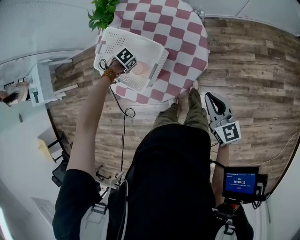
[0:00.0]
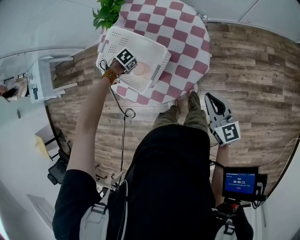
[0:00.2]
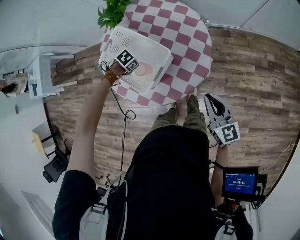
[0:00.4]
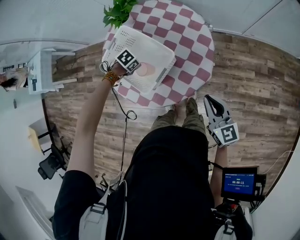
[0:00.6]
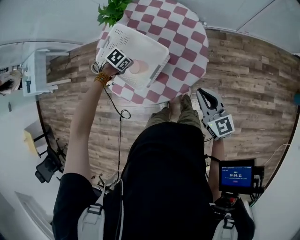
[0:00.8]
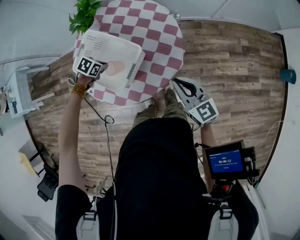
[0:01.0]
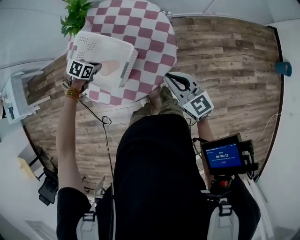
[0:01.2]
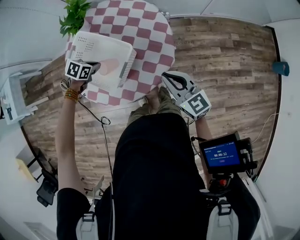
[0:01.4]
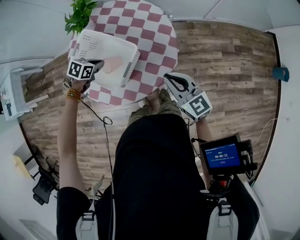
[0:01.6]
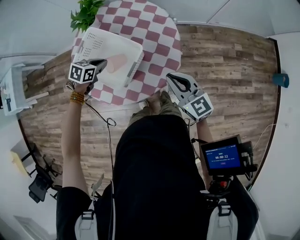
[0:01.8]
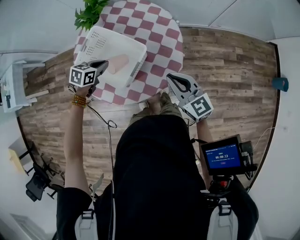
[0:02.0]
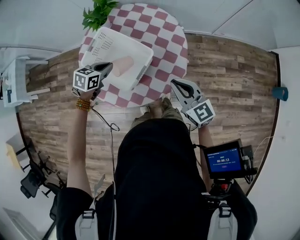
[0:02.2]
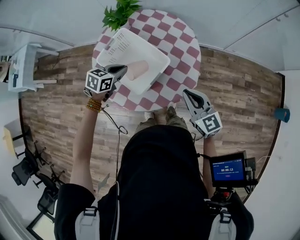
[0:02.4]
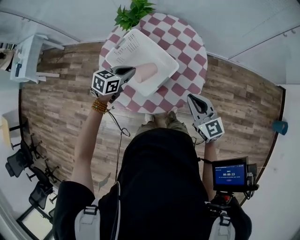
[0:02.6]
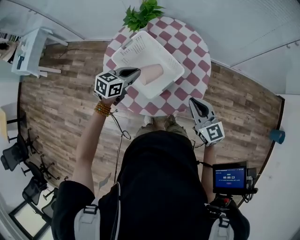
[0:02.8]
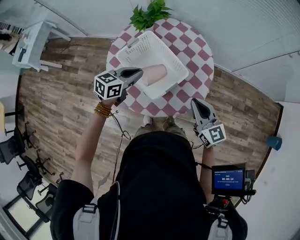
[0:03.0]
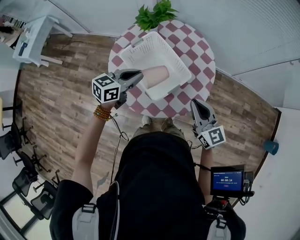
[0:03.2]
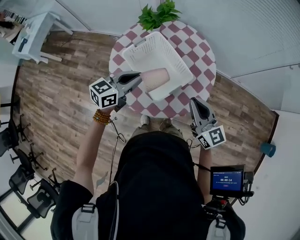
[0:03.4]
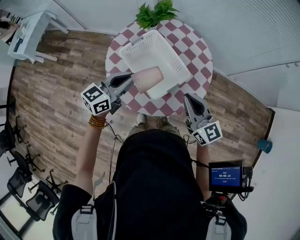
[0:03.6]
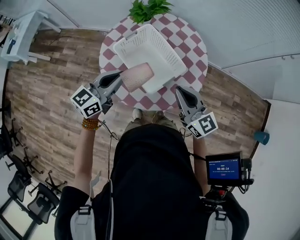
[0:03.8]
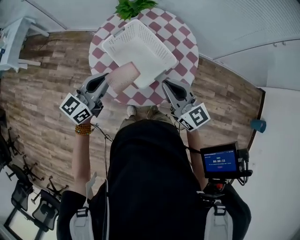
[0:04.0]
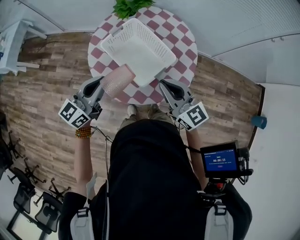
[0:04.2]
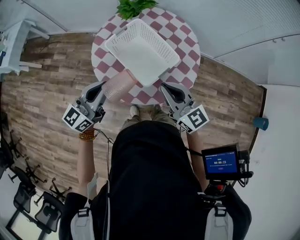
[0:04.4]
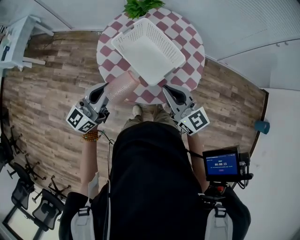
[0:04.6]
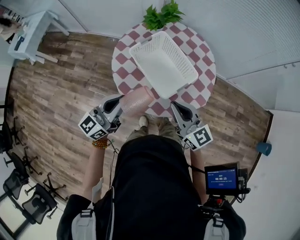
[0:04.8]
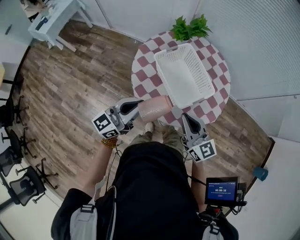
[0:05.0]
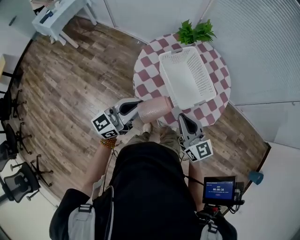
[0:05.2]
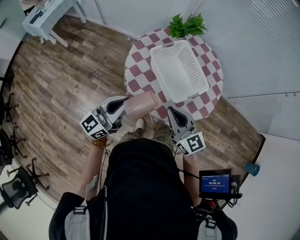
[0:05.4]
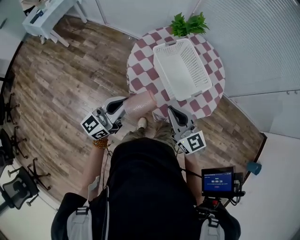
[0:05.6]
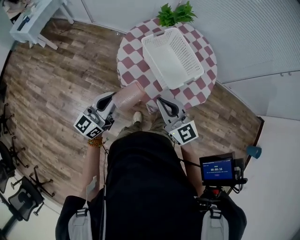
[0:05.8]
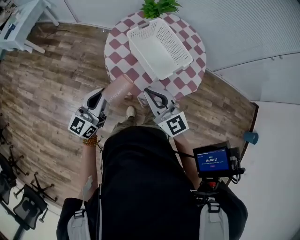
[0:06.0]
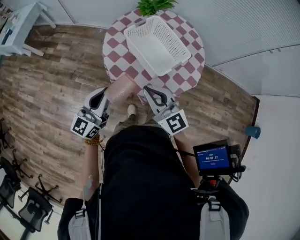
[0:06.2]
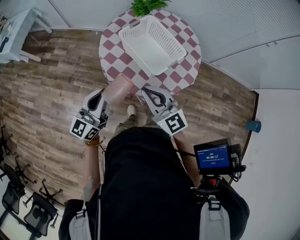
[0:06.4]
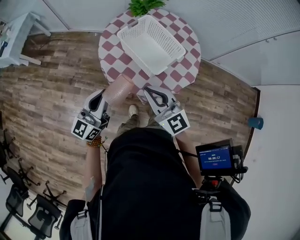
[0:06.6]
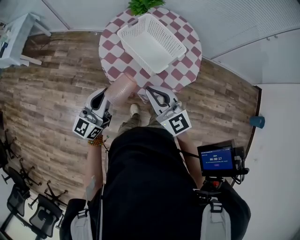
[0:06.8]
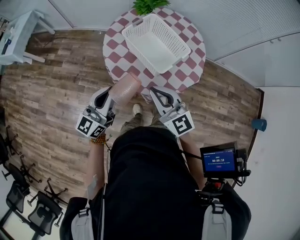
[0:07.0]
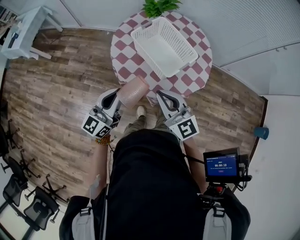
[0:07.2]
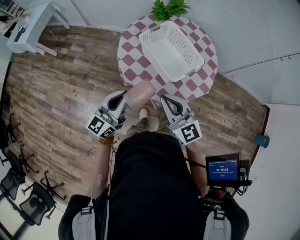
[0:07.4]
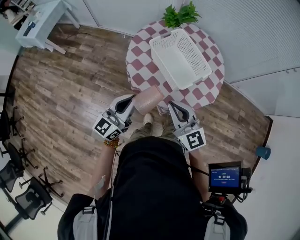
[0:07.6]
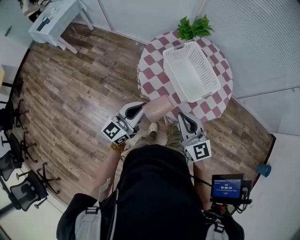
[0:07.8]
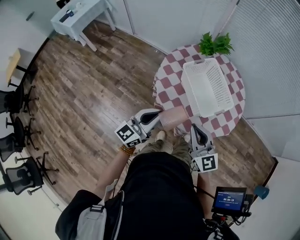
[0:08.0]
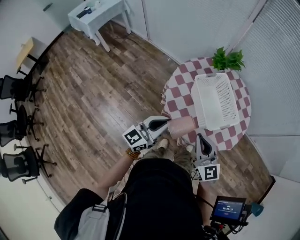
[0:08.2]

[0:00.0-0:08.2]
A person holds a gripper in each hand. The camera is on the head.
0:00.0 to 0:01.6: The right gripper shifts by roughly 10 cm, while the left gripper travels upward by about 10 cm, and rotates roughly 30 degrees.
0:01.6 to 0:03.2: The right gripper heads to the left and upward, covering some 10 cm, while the left gripper heads upward, covering about 15 cm, and angles its fingers upward, by approximately 40 degrees.
0:03.2 to 0:05.0: The right gripper heads to the left and backward, covering roughly 20 cm. Meanwhile the left gripper is displaced backward and to the left by about 20 cm, and turns by approximately 30 degrees.
0:05.0 to 0:06.6: The left gripper shifts approximately 10 cm backward and to the left, while the right gripper heads to the left and backward, covering some 10 cm.
0:06.6 to 0:08.2: There are only small adjustments of the grippers.

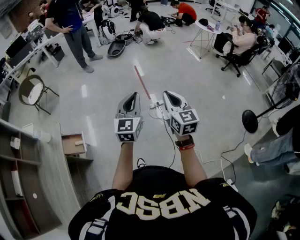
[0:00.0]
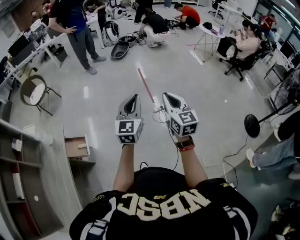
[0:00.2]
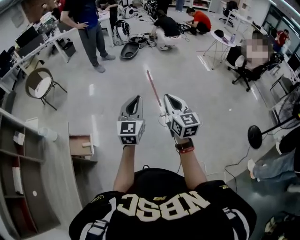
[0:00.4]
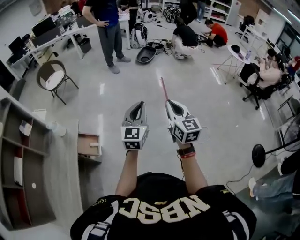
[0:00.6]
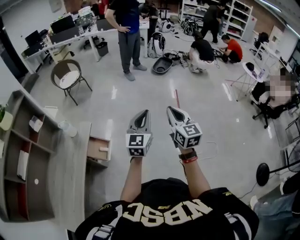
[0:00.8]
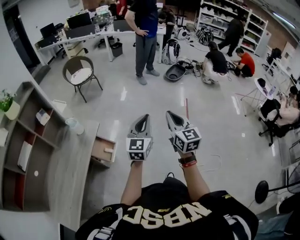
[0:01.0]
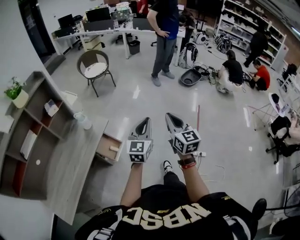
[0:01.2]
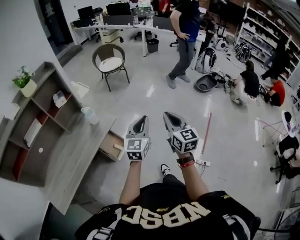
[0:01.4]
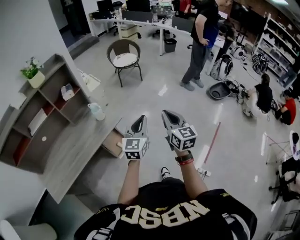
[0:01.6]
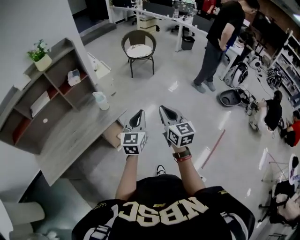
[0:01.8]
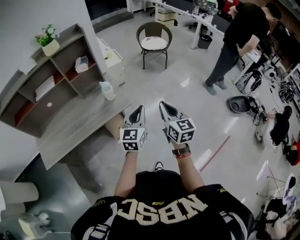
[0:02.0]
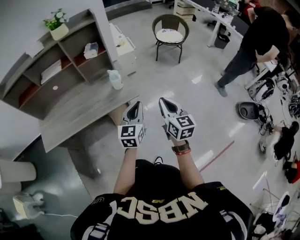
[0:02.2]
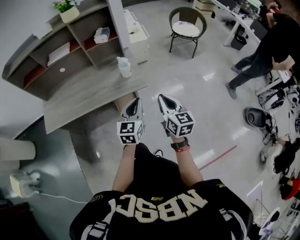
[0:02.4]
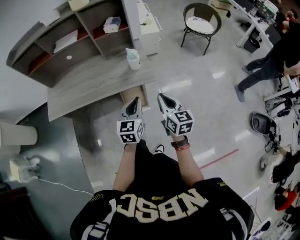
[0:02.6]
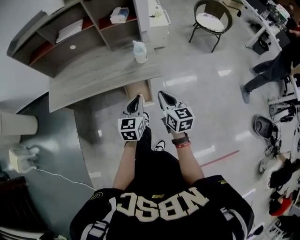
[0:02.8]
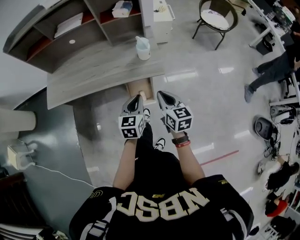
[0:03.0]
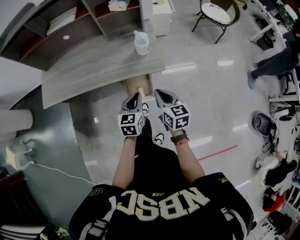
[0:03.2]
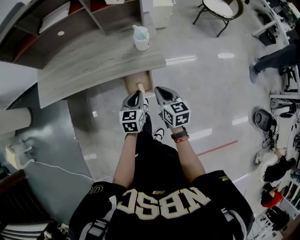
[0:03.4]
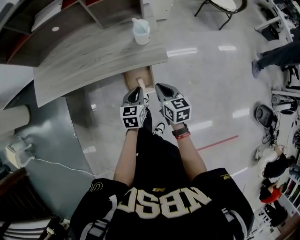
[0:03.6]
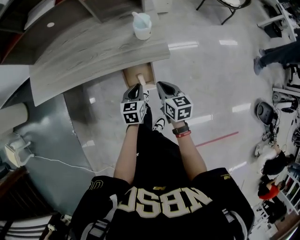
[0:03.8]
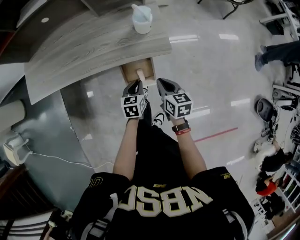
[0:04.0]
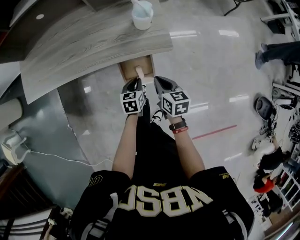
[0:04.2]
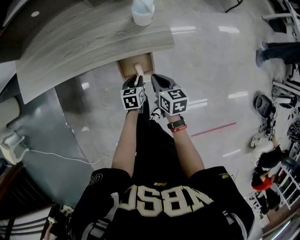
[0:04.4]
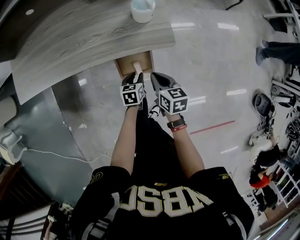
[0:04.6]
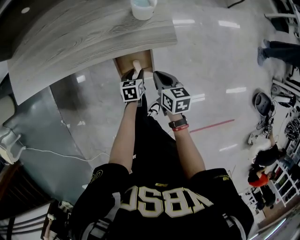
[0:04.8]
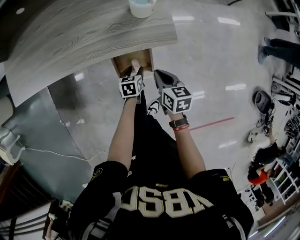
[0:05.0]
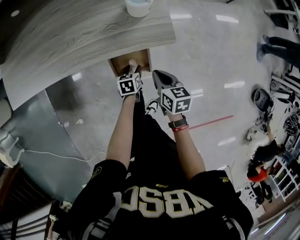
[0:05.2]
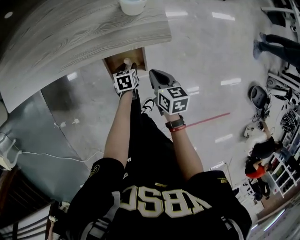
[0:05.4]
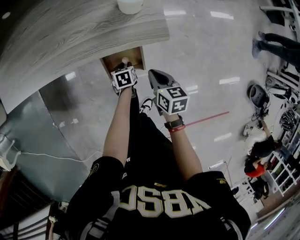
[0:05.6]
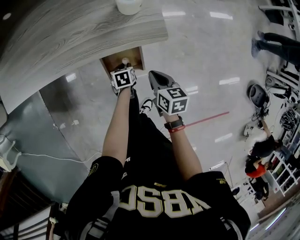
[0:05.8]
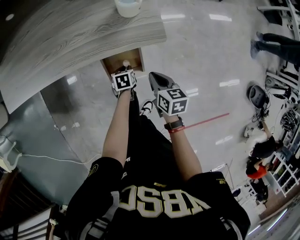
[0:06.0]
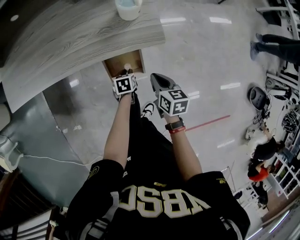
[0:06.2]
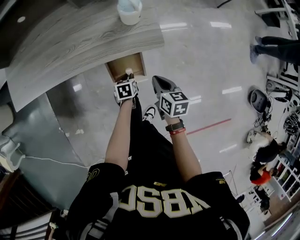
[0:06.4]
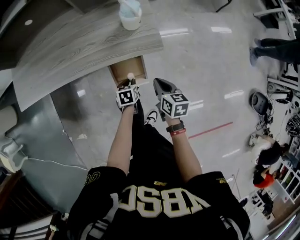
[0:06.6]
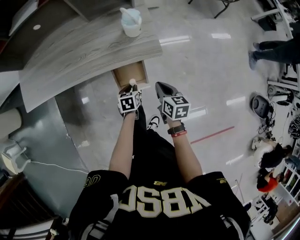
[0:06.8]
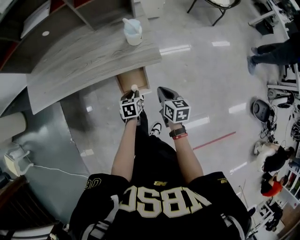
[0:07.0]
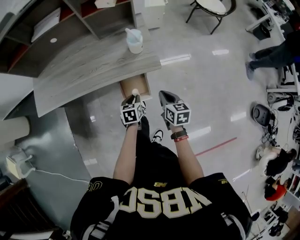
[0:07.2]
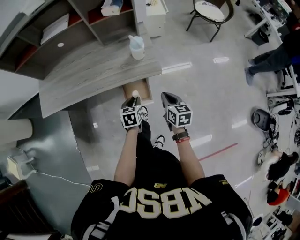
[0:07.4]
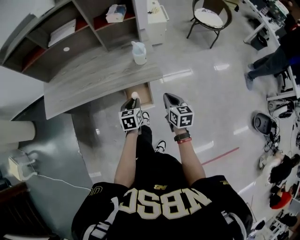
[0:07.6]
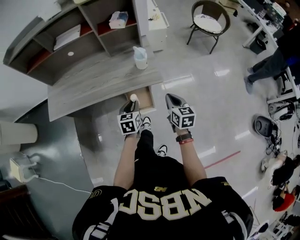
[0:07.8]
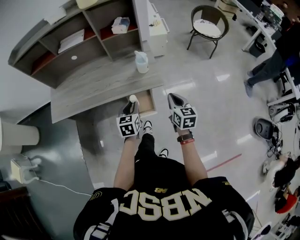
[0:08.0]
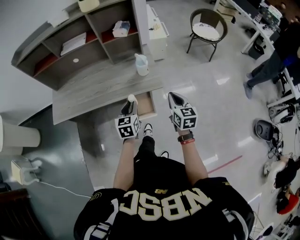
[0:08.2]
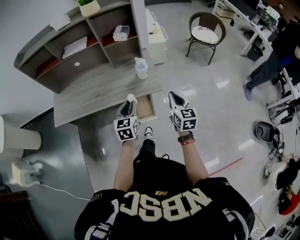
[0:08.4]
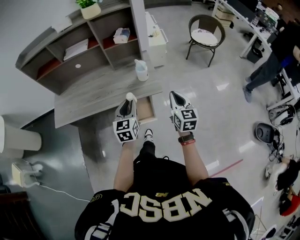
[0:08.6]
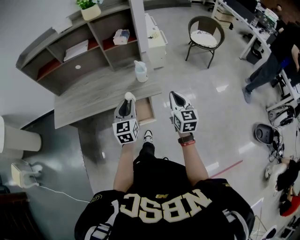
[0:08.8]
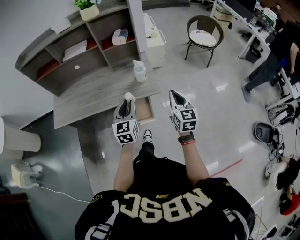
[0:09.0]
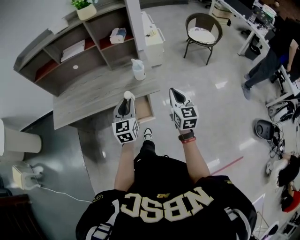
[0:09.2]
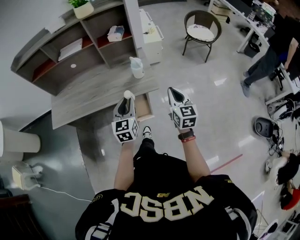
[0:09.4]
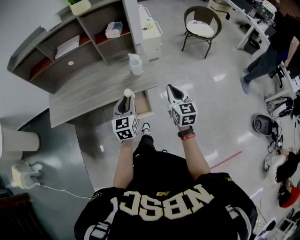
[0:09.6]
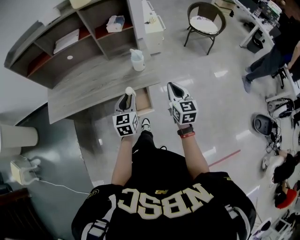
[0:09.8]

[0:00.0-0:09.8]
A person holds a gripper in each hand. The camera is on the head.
0:00.0 to 0:01.4: The pair of grippers is taken approximately 50 cm. The left gripper rotates approximately 40 degrees. The right gripper changes its angle by roughly 50 degrees.
0:01.4 to 0:02.8: The left gripper shifts by roughly 25 cm, and swivels approximately 60 degrees, while the right gripper ends up roughly 30 cm from where it was, and rotates some 60 degrees.
0:02.8 to 0:04.2: Both grippers move downward, roughly 25 cm. The left gripper swivels some 30 degrees, while the right gripper swivels approximately 20 degrees.
0:04.2 to 0:05.6: The left gripper is displaced downward by approximately 15 cm, and opens. The right gripper heads downward, covering about 5 cm.
0:05.6 to 0:07.0: The right gripper is displaced upward by roughly 10 cm. Meanwhile the left gripper travels upward by about 20 cm.
0:07.0 to 0:08.4: Both grippers move upward, approximately 25 cm. The left gripper tilts its fingers some 30 degrees upward; the right gripper rotates roughly 30 degrees.
0:08.4 to 0:09.8: There are only small adjustments of the grippers.

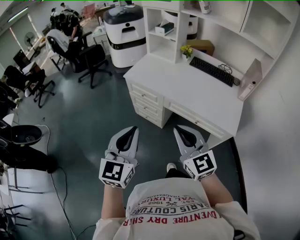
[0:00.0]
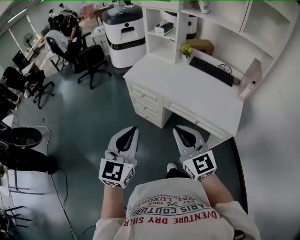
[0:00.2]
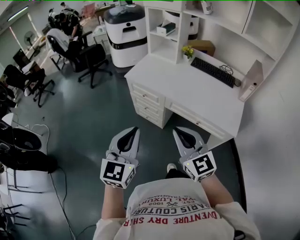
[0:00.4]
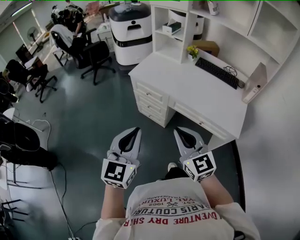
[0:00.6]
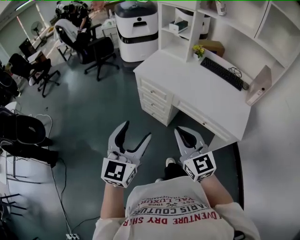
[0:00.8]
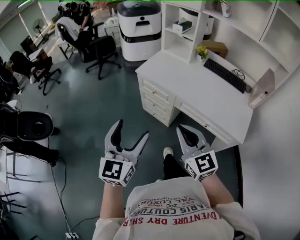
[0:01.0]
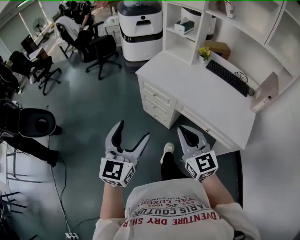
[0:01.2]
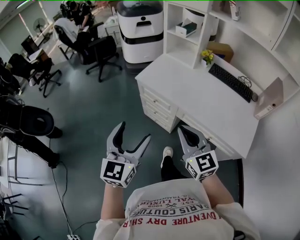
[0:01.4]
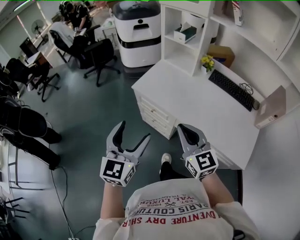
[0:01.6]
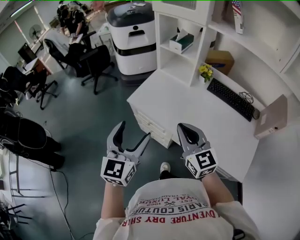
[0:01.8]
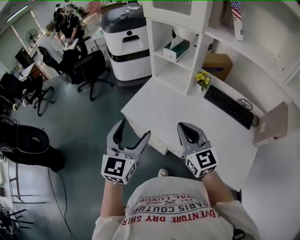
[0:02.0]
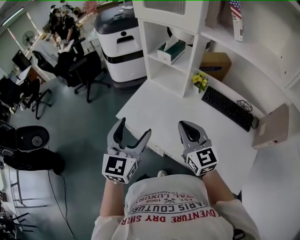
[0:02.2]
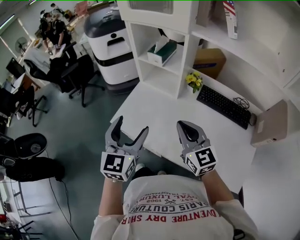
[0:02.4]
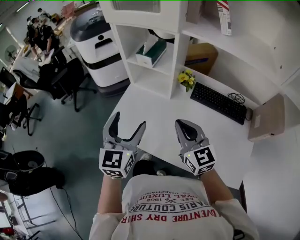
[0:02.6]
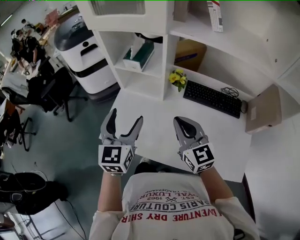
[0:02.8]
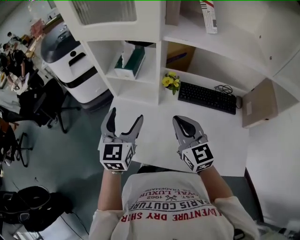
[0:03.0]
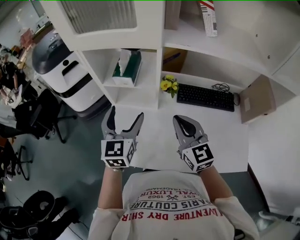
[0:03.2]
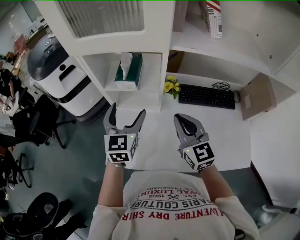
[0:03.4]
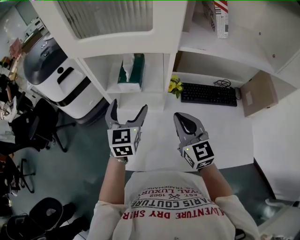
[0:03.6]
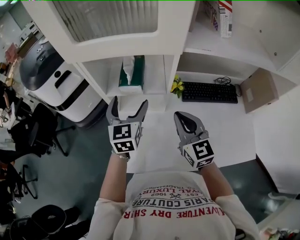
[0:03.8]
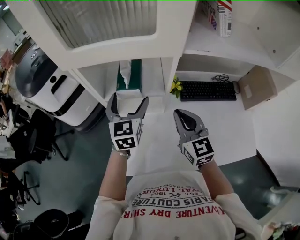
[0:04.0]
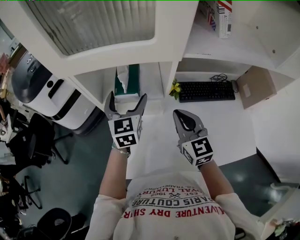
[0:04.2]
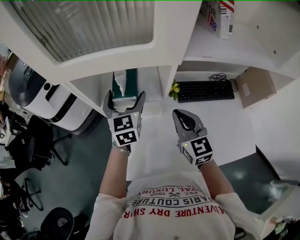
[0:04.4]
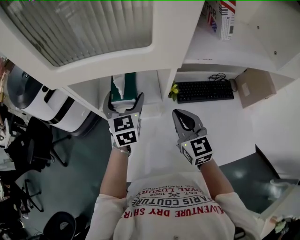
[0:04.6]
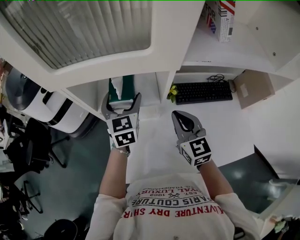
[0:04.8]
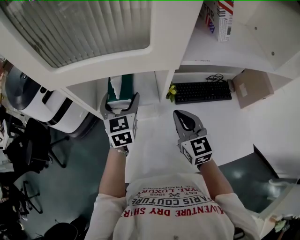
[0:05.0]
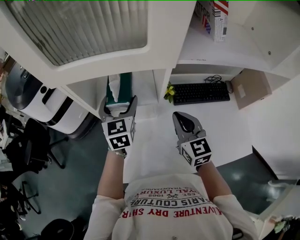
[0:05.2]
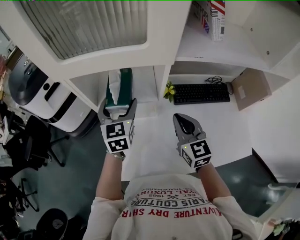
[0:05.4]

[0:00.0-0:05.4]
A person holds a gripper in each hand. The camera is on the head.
0:00.0 to 0:01.4: The grippers both shift forward by roughly 15 cm. The left gripper opens its fingers.
0:01.4 to 0:02.8: Both grippers are carried forward, approximately 40 cm.
0:02.8 to 0:04.0: The left gripper goes some 25 cm forward. Meanwhile the right gripper is displaced forward and to the left by roughly 15 cm, and turns by some 20 degrees.
0:04.0 to 0:05.4: The grippers move only a little.
